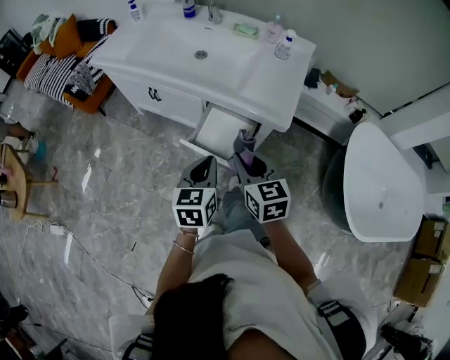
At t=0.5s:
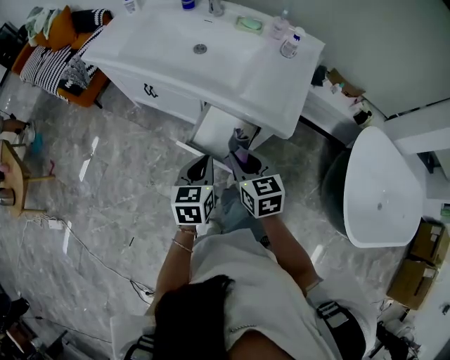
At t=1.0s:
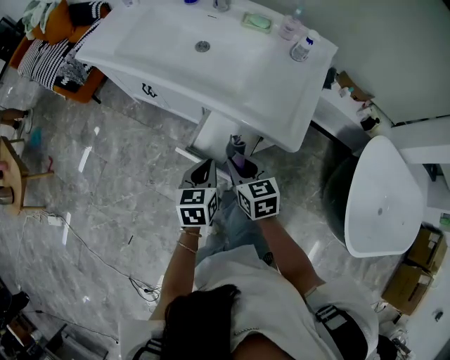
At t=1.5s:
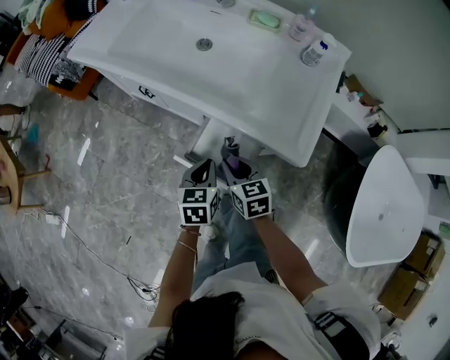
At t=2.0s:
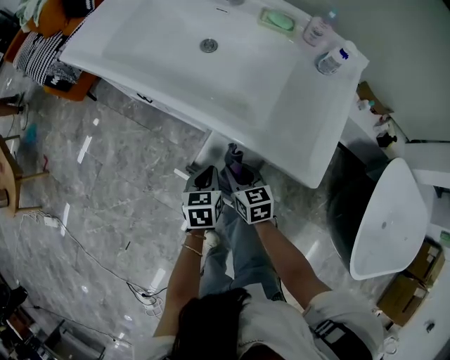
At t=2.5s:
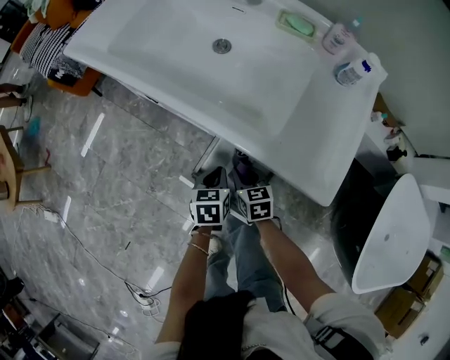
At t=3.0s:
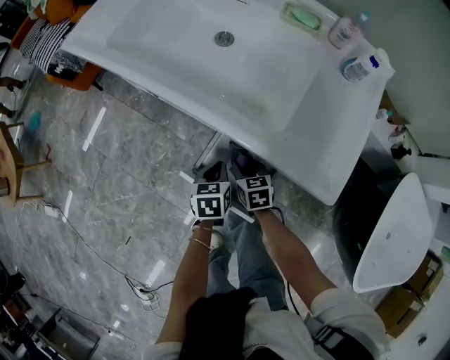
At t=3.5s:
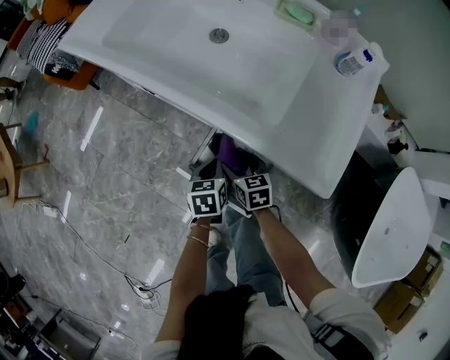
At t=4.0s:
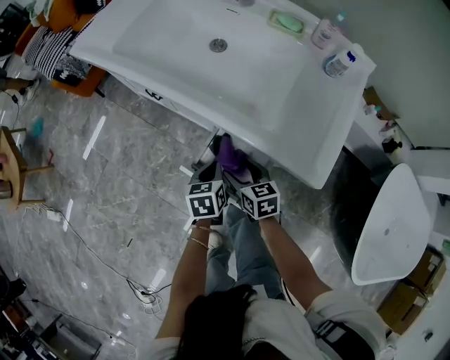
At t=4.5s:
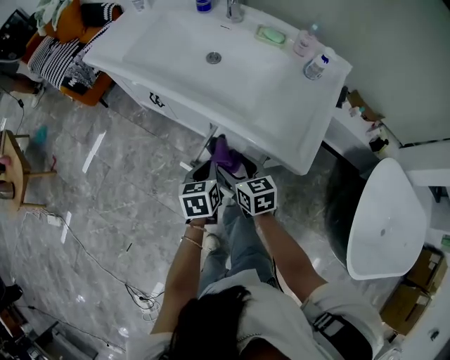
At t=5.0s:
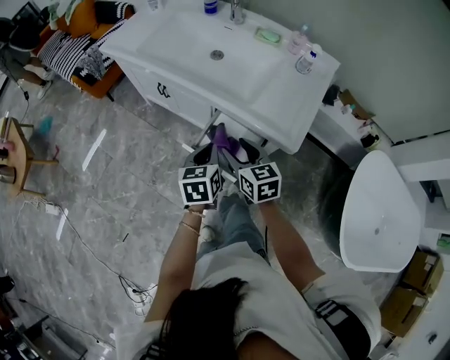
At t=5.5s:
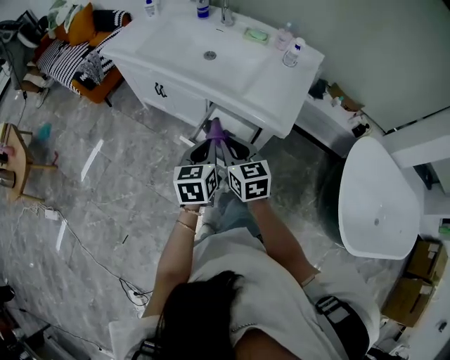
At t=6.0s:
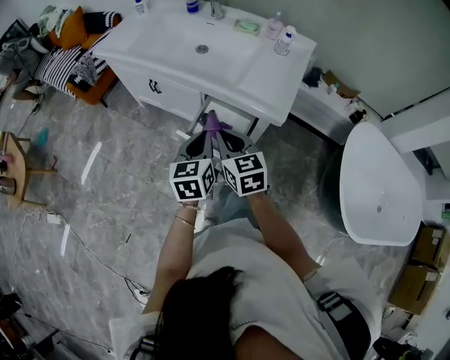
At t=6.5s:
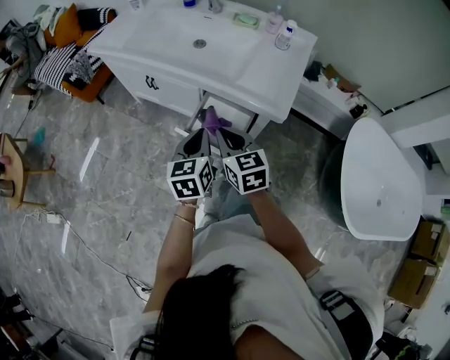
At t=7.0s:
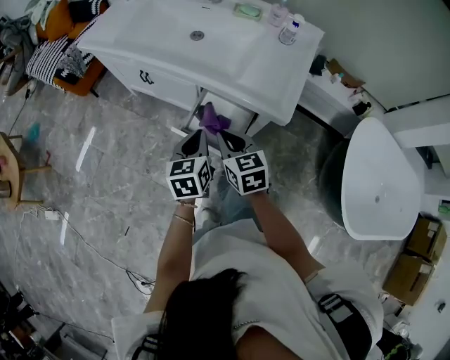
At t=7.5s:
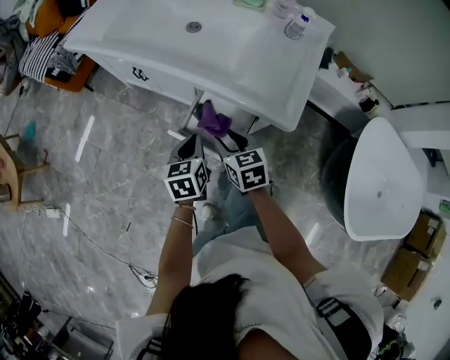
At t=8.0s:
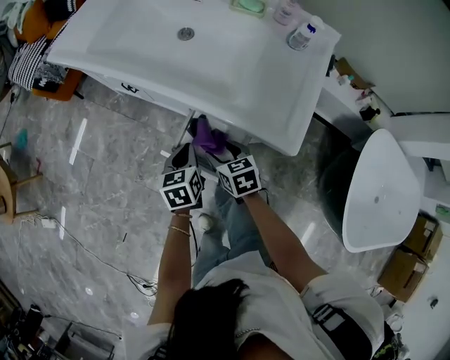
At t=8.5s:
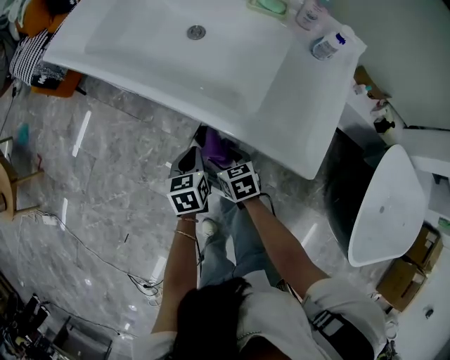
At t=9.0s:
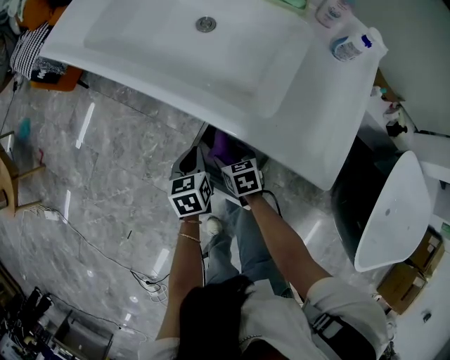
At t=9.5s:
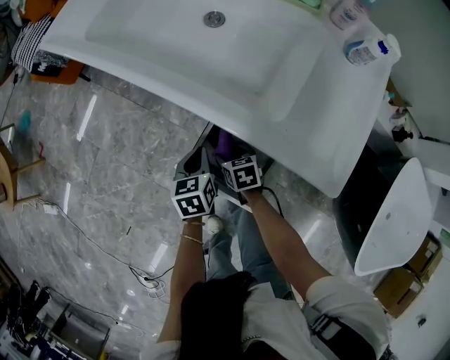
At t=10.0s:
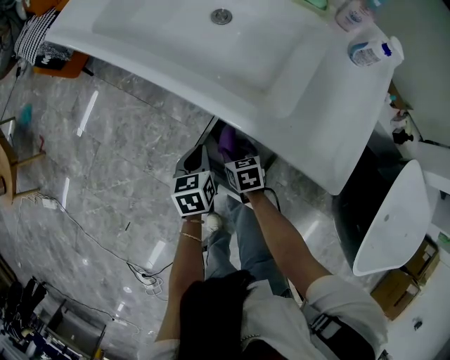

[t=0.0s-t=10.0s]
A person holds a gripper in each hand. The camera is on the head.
t=0.0s to t=2.0s: Both grippers move downward and forward, approximately 30 cm. The left gripper rotates some 20 degrees.
t=2.0s to t=4.0s: The right gripper moves about 10 cm downward and comes back, and opens.
t=4.0s to t=6.0s: The grippers both shift upward and backward by roughly 25 cm. The left gripper changes its angle by about 30 degrees. Meanwhile the right gripper turns by approximately 20 degrees, and closes.
t=6.0s to t=8.0s: The two grippers go approximately 20 cm downward and forward. The right gripper changes its angle by roughly 30 degrees, and opens its fingers. Meanwhile the left gripper turns by approximately 20 degrees.
t=8.0s to t=10.0s: The right gripper goes some 15 cm downward, and closes its fingers; the left gripper shifts approximately 10 cm downward.

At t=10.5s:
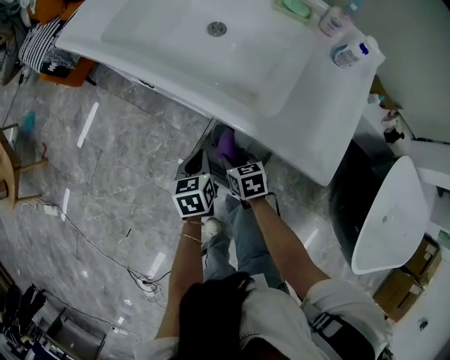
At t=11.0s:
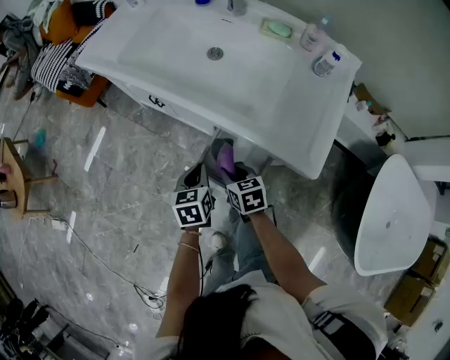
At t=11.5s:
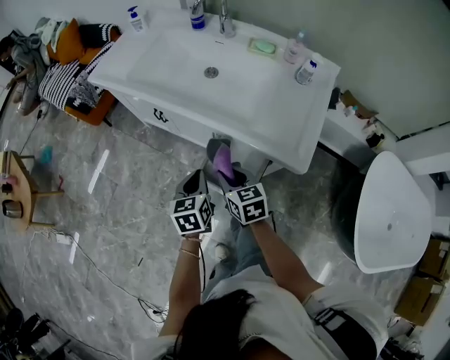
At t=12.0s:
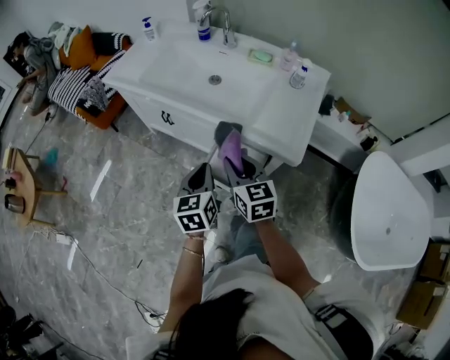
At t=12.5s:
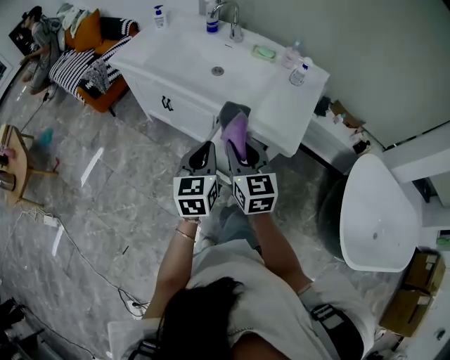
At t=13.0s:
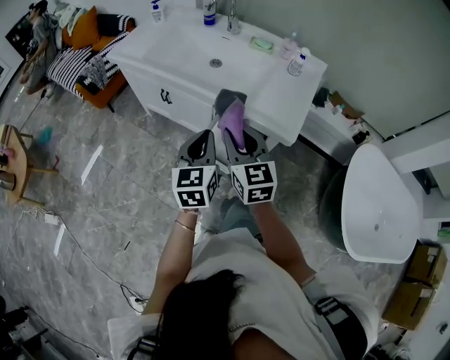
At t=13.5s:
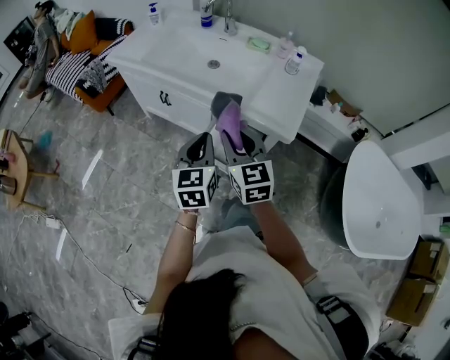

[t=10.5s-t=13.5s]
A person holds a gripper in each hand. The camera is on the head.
t=10.5s to t=12.0s: The left gripper travels upward and backward by some 25 cm, and rotates roughly 20 degrees. Meanwhile the right gripper moves upward, some 30 cm, and tips its fingers upward by about 30 degrees.
t=12.0s to t=13.5s: Both grippers move upward, approximately 5 cm.

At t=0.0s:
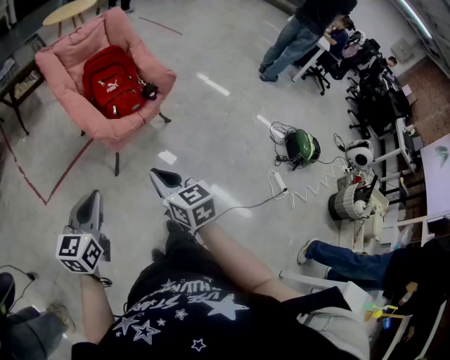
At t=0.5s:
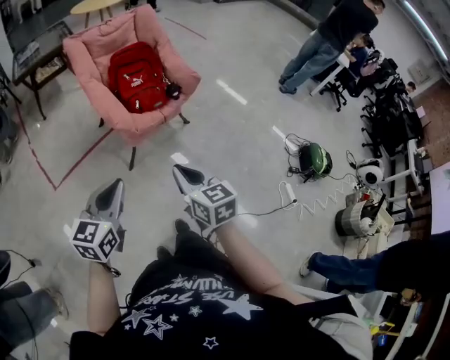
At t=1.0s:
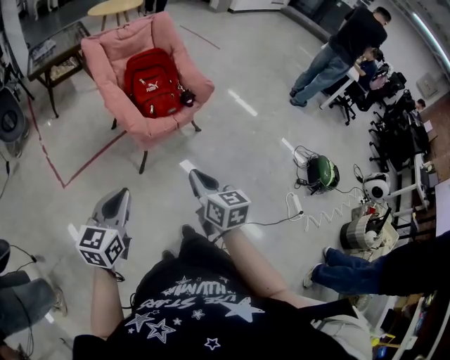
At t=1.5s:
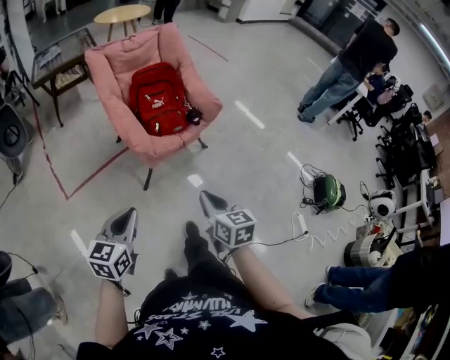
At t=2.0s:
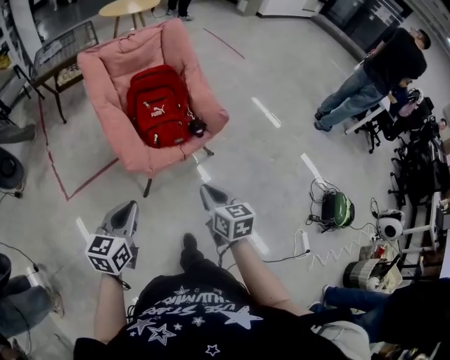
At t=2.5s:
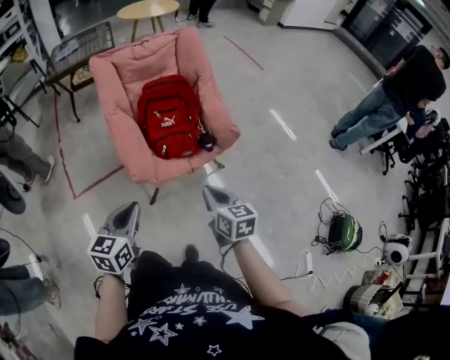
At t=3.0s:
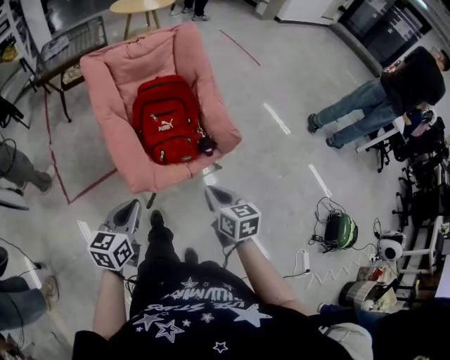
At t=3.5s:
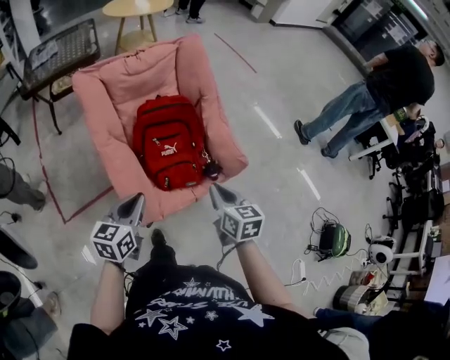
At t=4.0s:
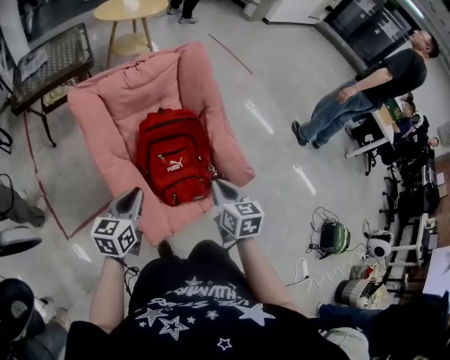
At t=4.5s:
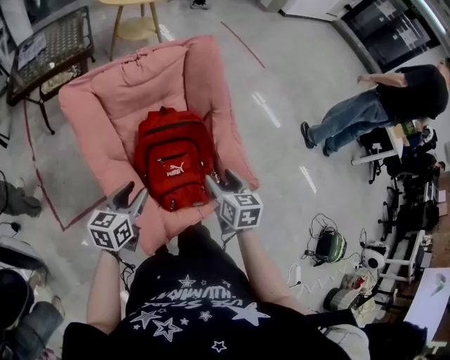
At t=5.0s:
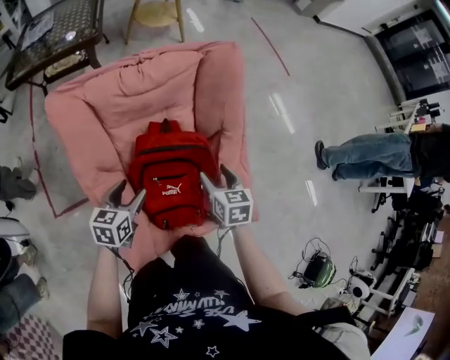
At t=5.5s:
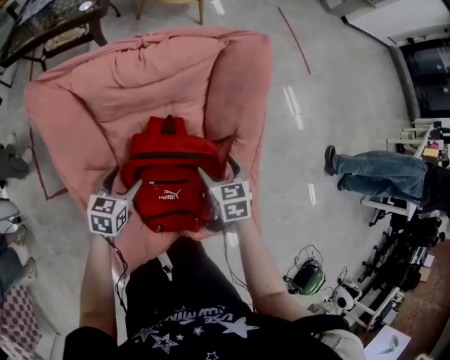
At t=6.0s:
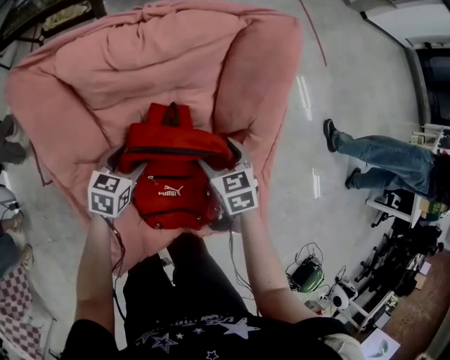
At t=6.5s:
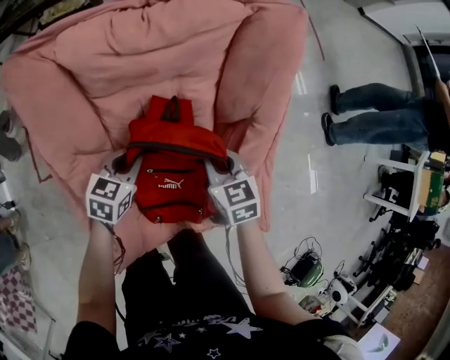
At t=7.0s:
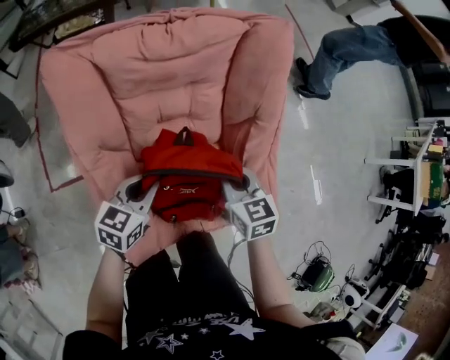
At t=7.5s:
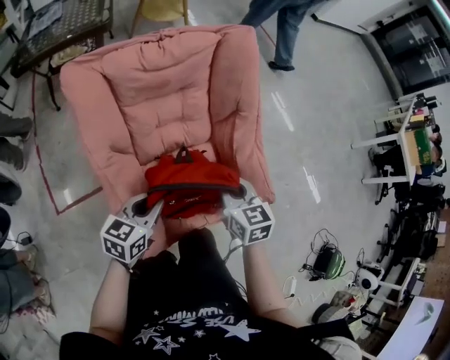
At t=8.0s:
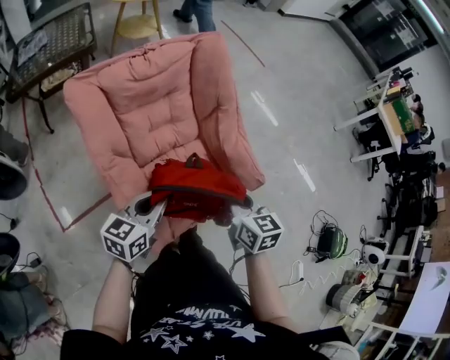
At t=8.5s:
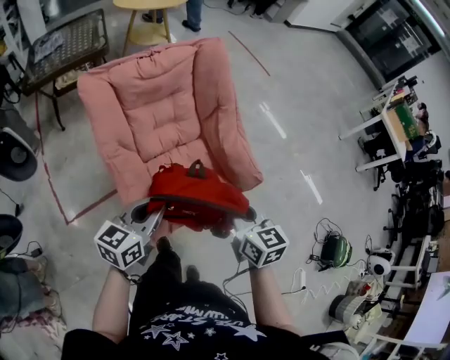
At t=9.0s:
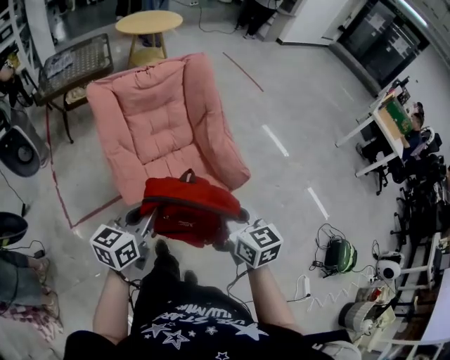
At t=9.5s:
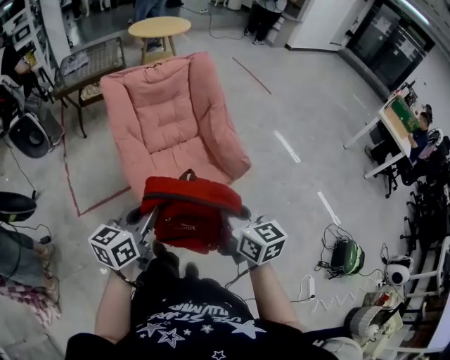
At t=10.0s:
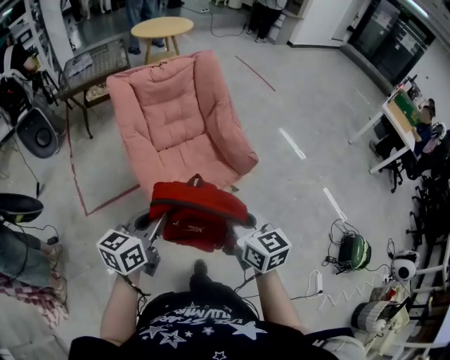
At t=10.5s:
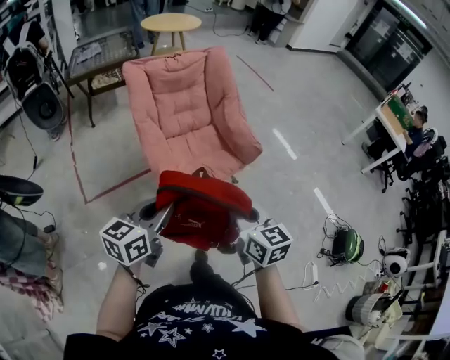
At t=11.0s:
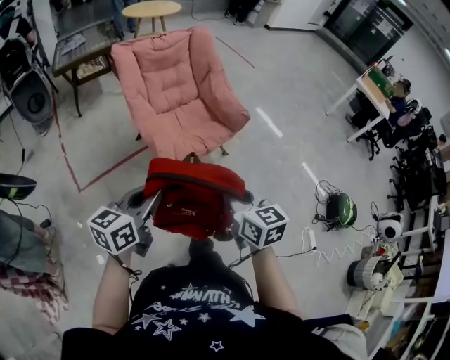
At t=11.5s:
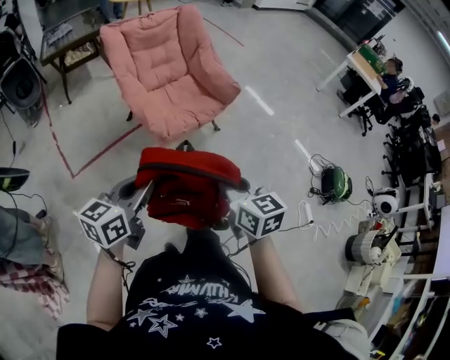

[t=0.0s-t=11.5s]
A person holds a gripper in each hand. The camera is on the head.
t=0.0s to t=2.0s: The grippers both shift forward by some 20 cm.
t=2.0s to t=4.0s: Both grippers move forward, some 40 cm.
t=4.0s to t=6.0s: Both grippers move forward and downward, about 40 cm. The left gripper swivels roughly 20 degrees, and opens up. The right gripper swivels roughly 40 degrees, and opens.
t=6.0s to t=7.5s: Both grippers travel together backward and upward, some 30 cm. The right gripper rotates about 20 degrees, and closes up, while the left gripper swivels roughly 20 degrees, and closes its fingers.
t=7.5s to t=9.5s: The grippers both shift backward and upward by some 40 cm. The right gripper changes its angle by approximately 20 degrees.
t=9.5s to t=11.5s: The two grippers go approximately 30 cm backward.

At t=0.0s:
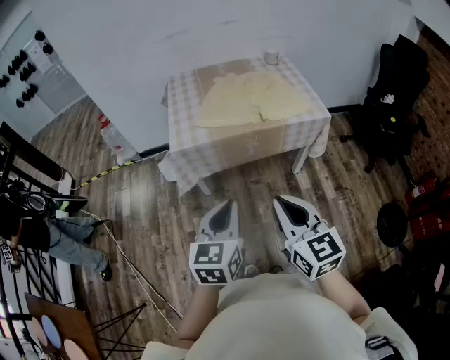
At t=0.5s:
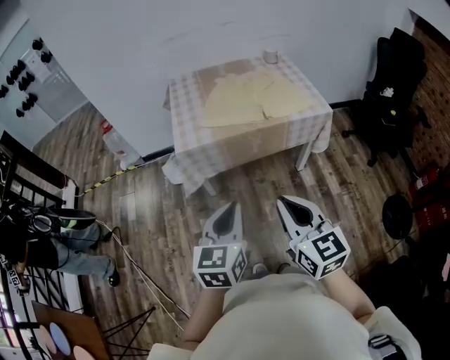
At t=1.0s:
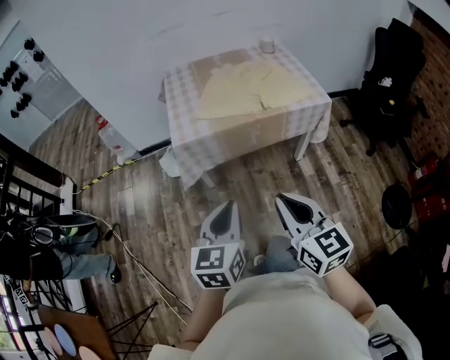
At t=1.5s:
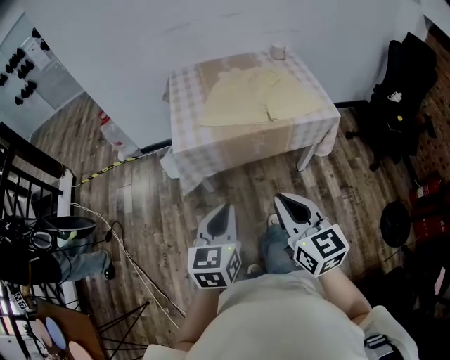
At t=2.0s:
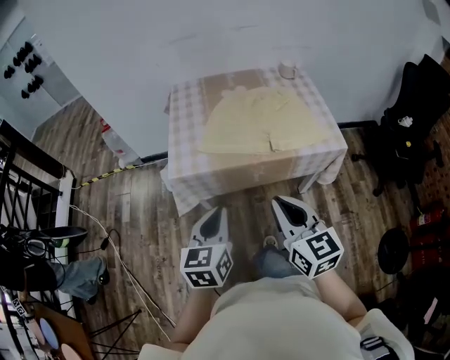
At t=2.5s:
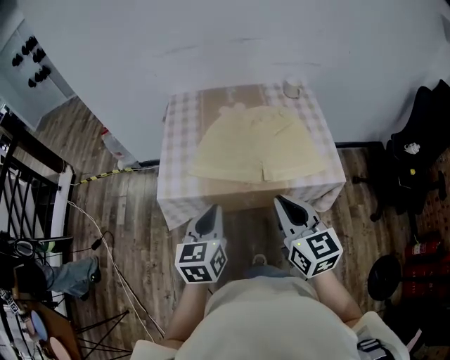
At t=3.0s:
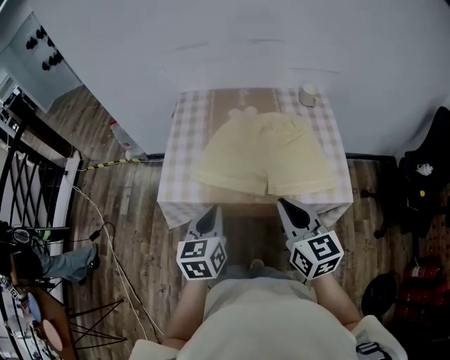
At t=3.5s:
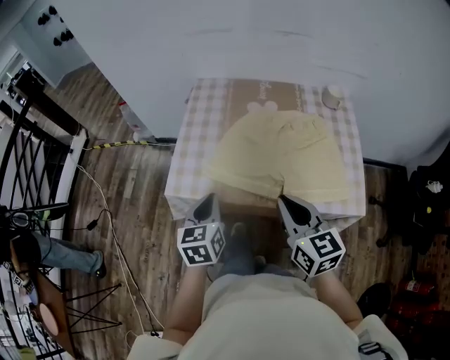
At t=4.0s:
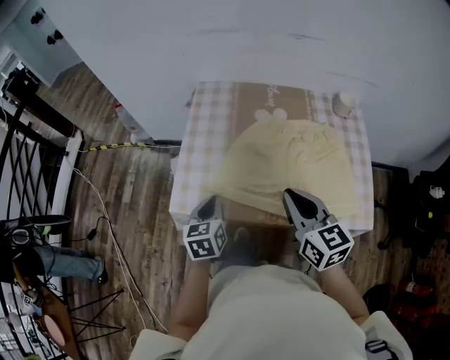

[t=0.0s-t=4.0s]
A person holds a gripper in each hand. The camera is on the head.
t=0.0s to t=2.0s: Both grippers move forward, about 15 cm.
t=2.0s to t=4.0s: The right gripper travels forward by about 30 cm. Meanwhile the left gripper is displaced forward and downward by some 30 cm, and turns by some 20 degrees.
